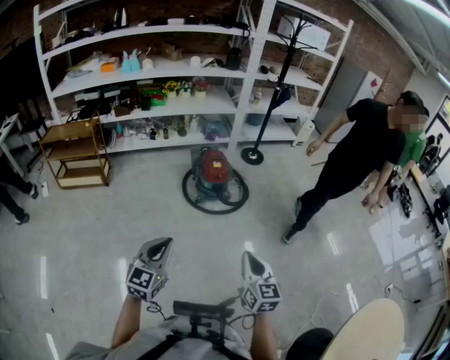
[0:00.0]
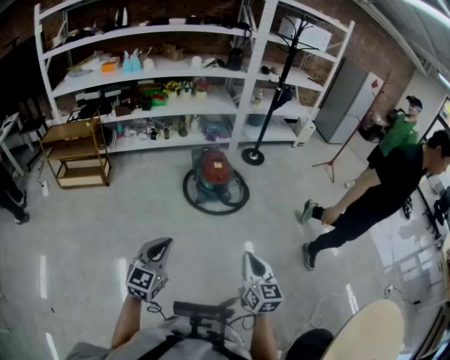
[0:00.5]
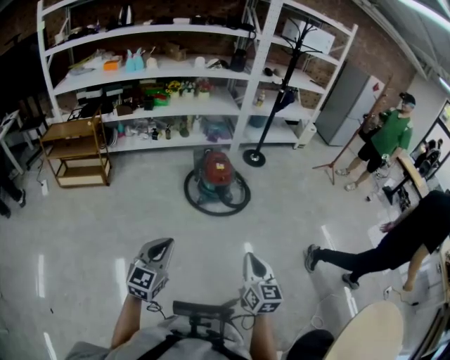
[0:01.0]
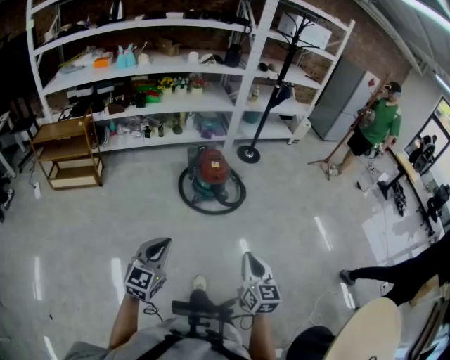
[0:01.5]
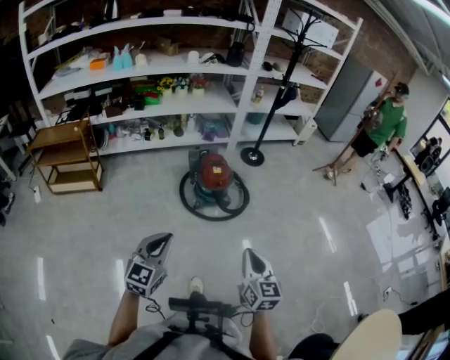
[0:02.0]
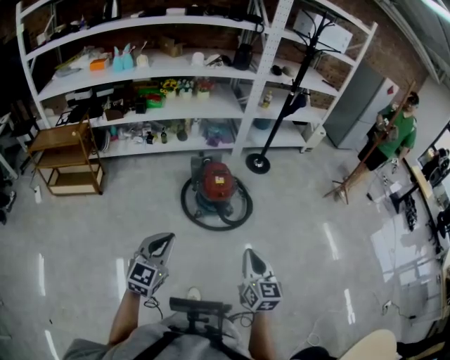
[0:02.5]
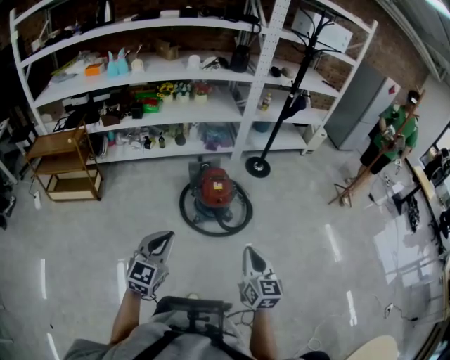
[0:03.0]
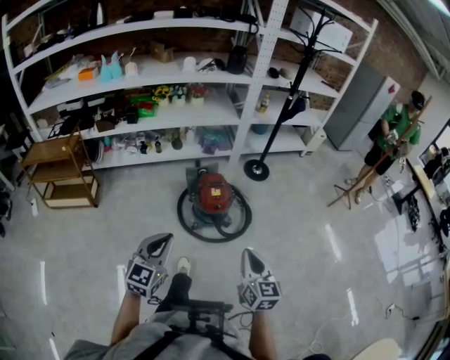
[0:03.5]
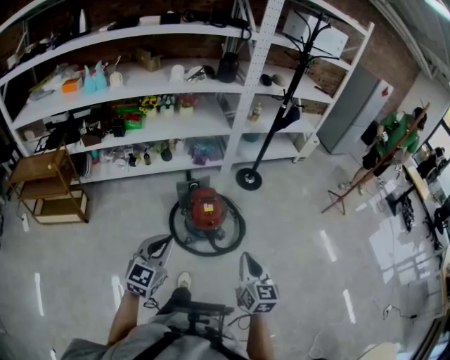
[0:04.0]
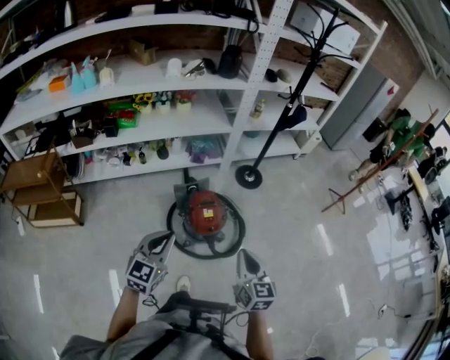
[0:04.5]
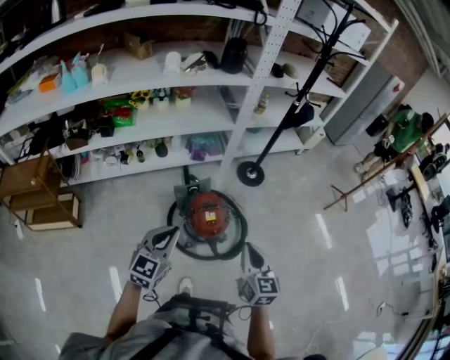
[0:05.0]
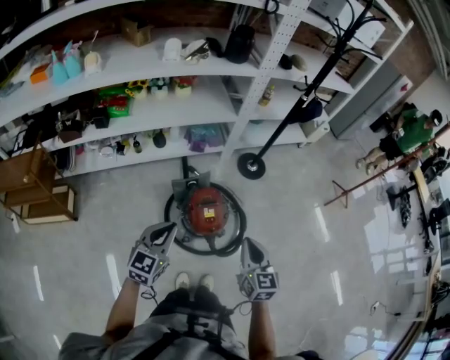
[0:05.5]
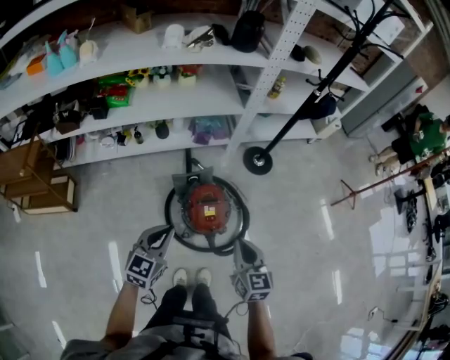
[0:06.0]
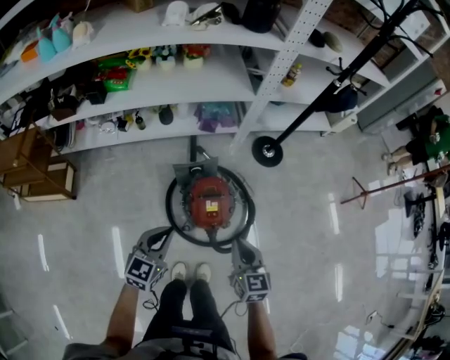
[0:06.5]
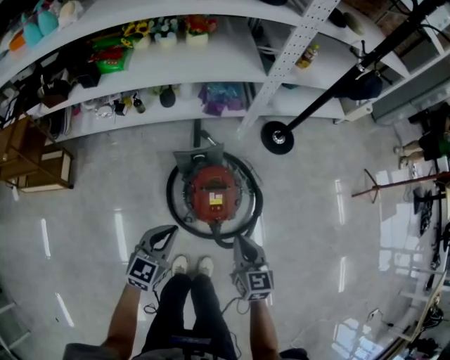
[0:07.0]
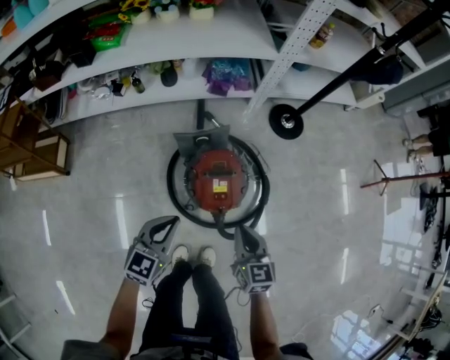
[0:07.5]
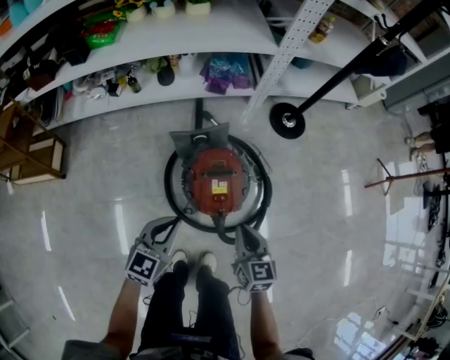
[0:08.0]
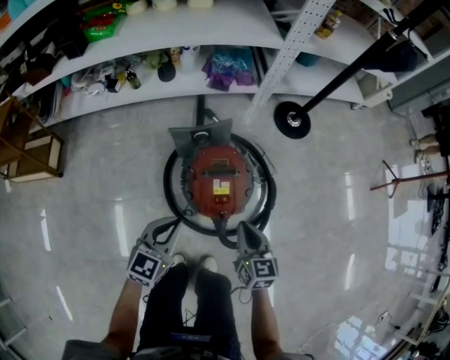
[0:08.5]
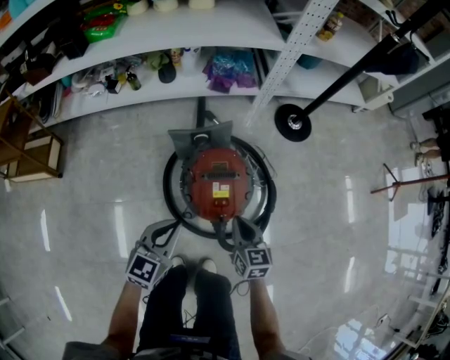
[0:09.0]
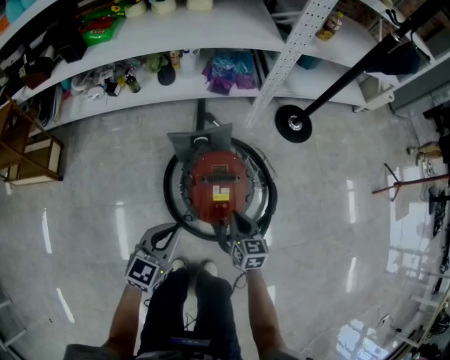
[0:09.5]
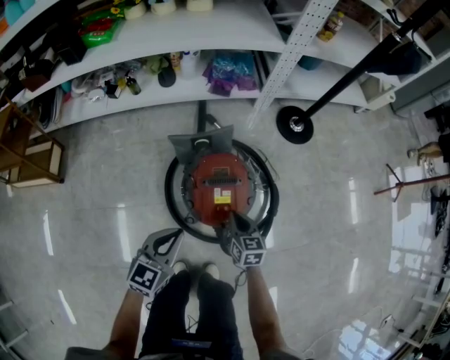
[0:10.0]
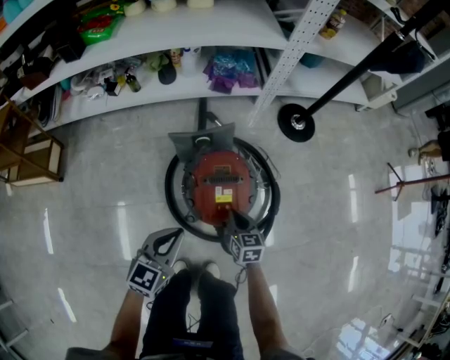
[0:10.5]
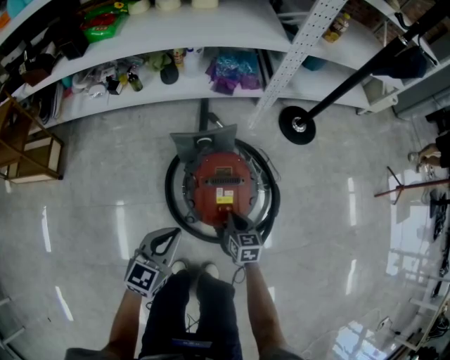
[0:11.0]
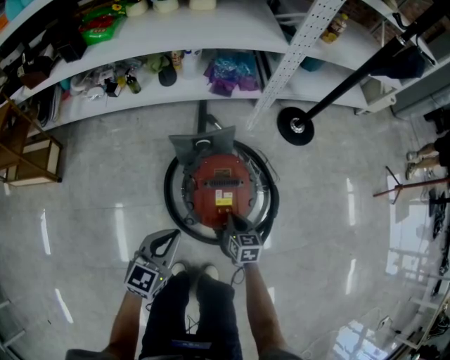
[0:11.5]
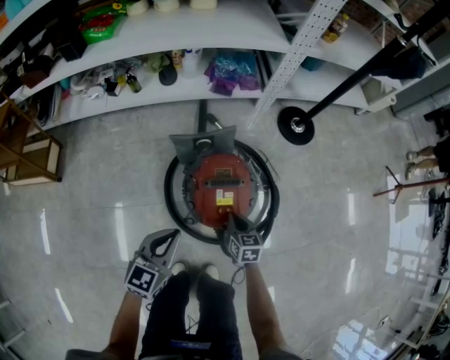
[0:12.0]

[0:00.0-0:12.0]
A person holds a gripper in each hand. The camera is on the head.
0.0 to 2.0 s: Both grippers travel together forward, some 15 cm.
2.0 to 4.0 s: The grippers both shift forward by about 30 cm.
4.0 to 6.0 s: Both grippers move forward, some 30 cm.
6.0 to 8.0 s: Both grippers move downward, approximately 30 cm.
8.0 to 10.0 s: The left gripper goes about 5 cm downward. Meanwhile the right gripper goes about 20 cm downward and forward.
10.0 to 12.0 s: The grippers make only small movements.

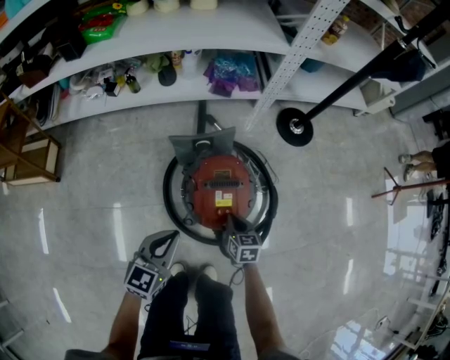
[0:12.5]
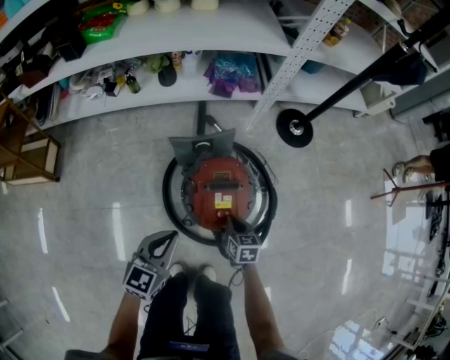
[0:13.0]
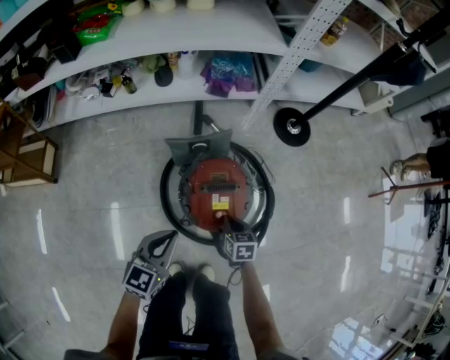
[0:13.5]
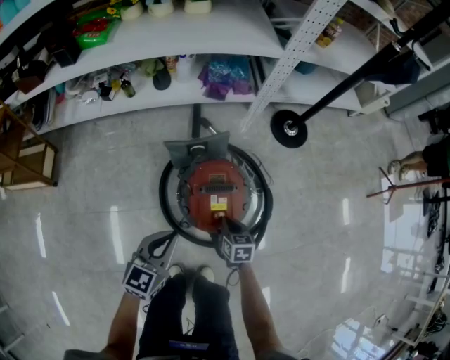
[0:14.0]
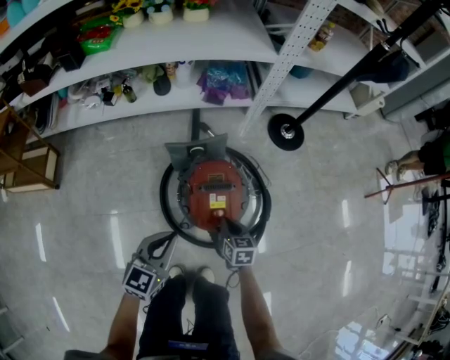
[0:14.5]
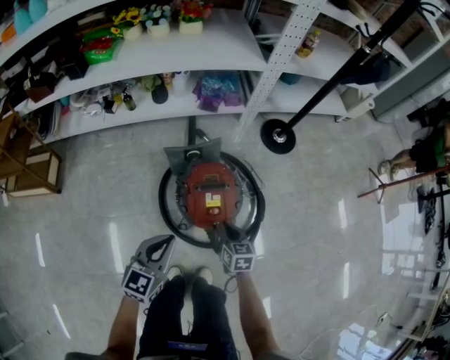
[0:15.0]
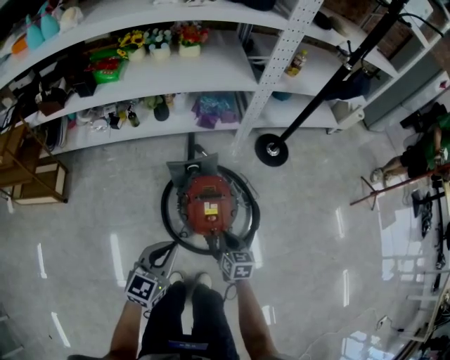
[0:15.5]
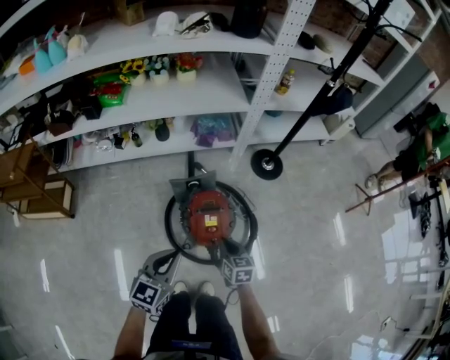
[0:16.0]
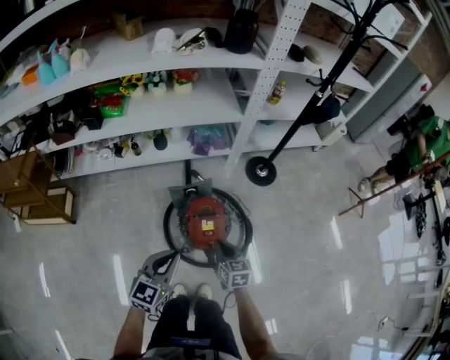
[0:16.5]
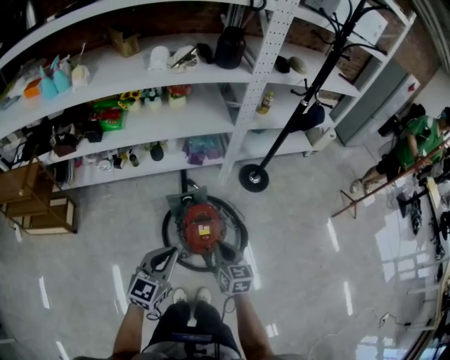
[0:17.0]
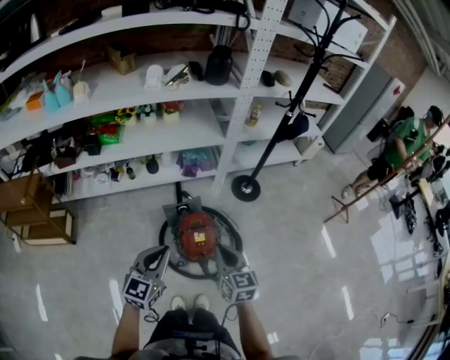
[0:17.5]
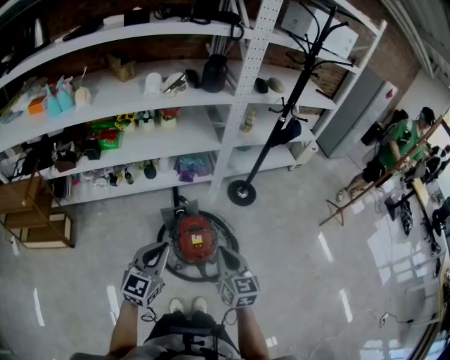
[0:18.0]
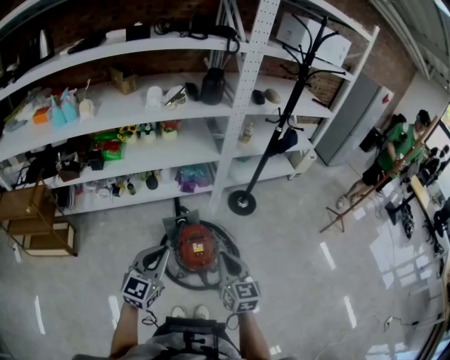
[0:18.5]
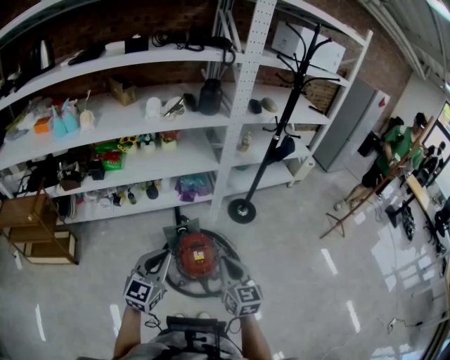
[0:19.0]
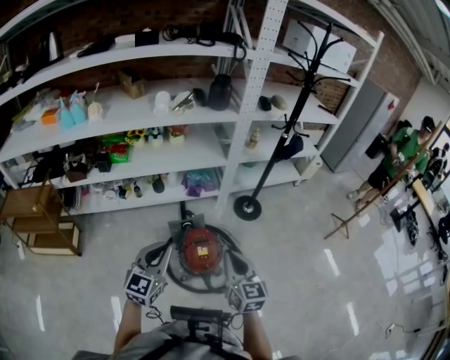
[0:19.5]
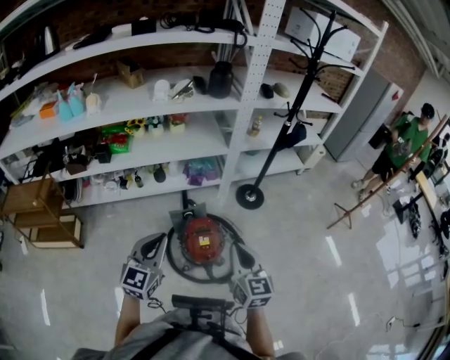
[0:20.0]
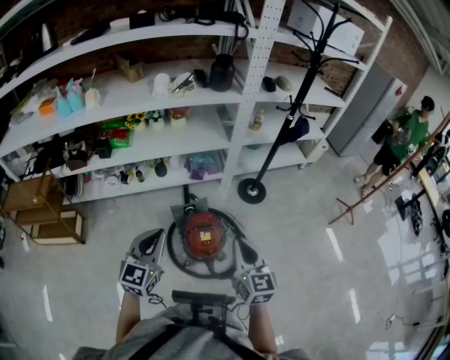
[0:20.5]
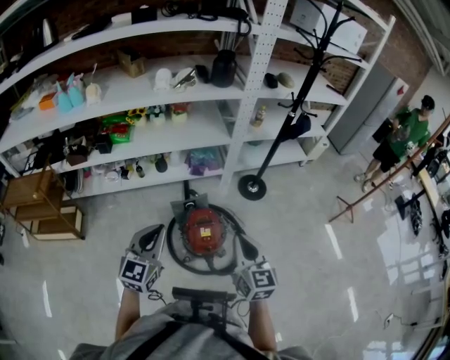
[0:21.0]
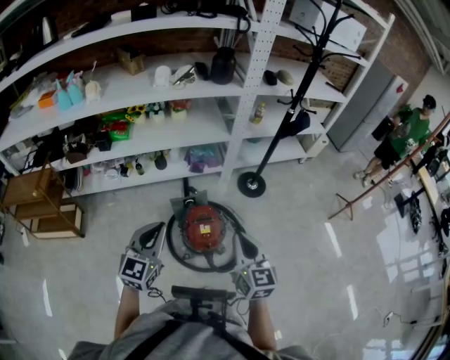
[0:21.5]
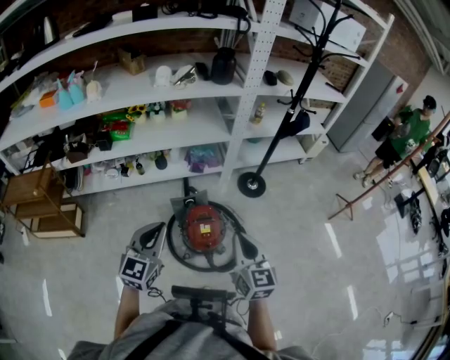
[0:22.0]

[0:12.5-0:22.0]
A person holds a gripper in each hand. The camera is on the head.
12.5 to 14.5 s: The grippers move only a little.
14.5 to 16.5 s: The two grippers go about 30 cm upward.
16.5 to 18.0 s: The left gripper goes roughly 15 cm upward, while the right gripper is displaced upward by approximately 25 cm.
18.0 to 20.0 s: The right gripper travels upward by some 5 cm.
20.0 to 22.0 s: The grippers move only a little.

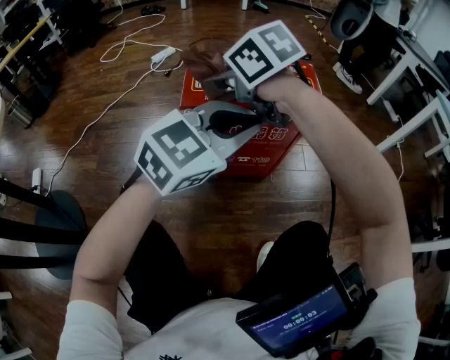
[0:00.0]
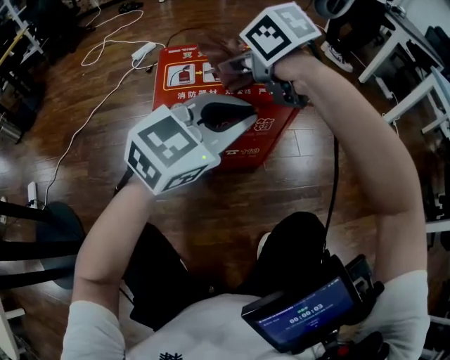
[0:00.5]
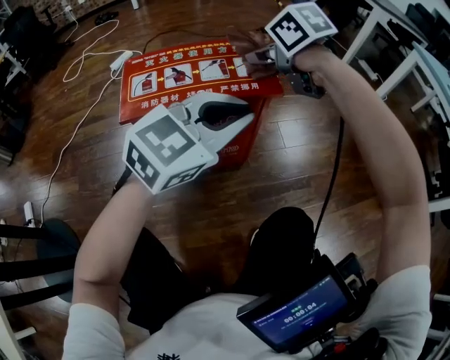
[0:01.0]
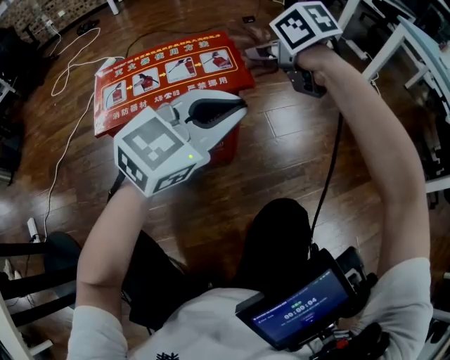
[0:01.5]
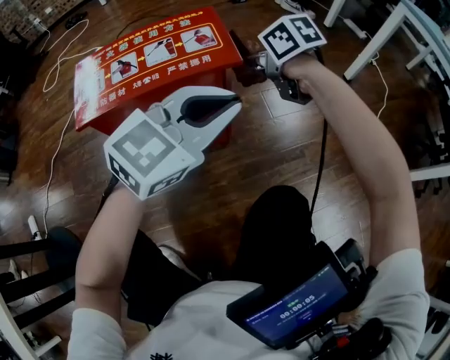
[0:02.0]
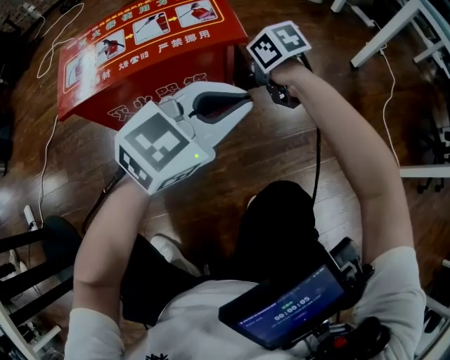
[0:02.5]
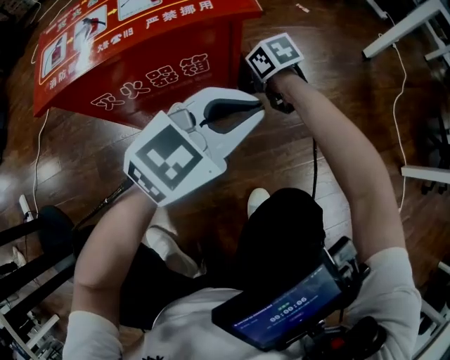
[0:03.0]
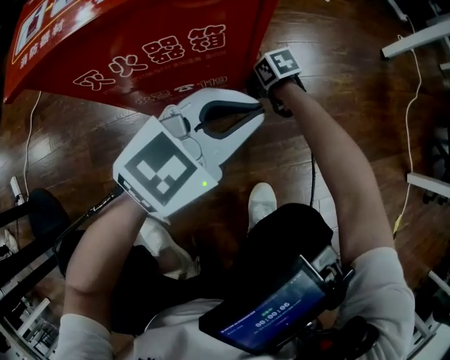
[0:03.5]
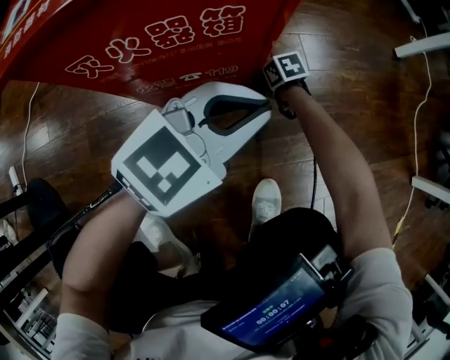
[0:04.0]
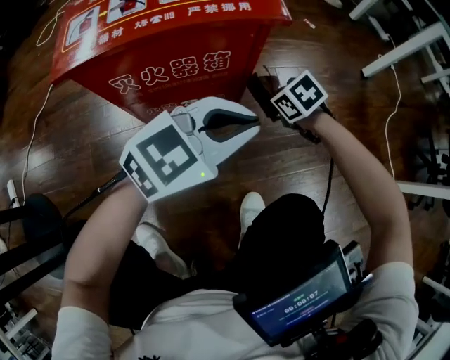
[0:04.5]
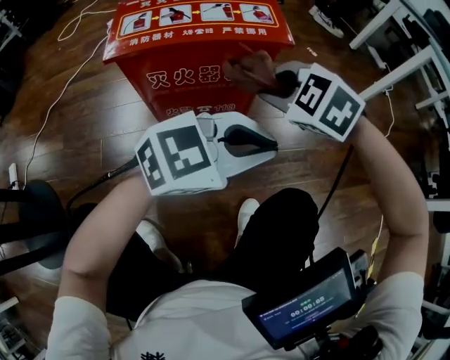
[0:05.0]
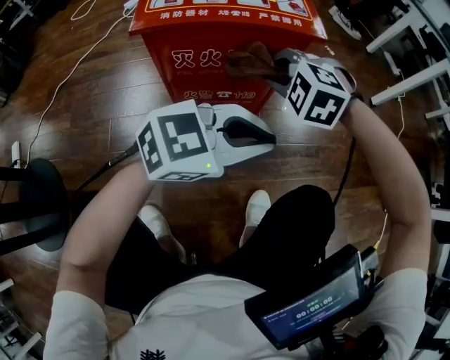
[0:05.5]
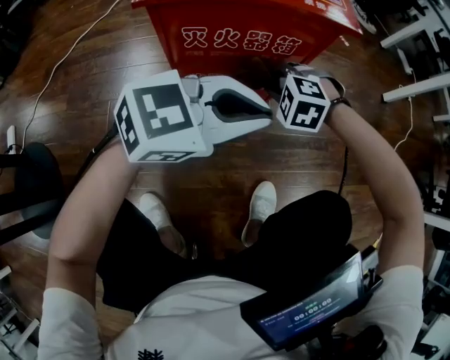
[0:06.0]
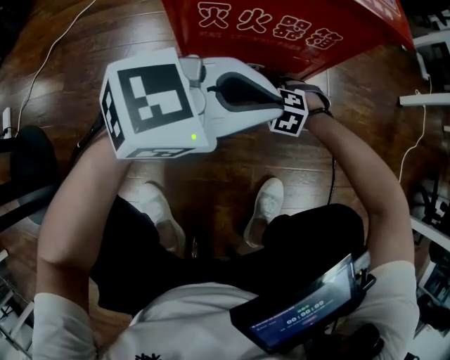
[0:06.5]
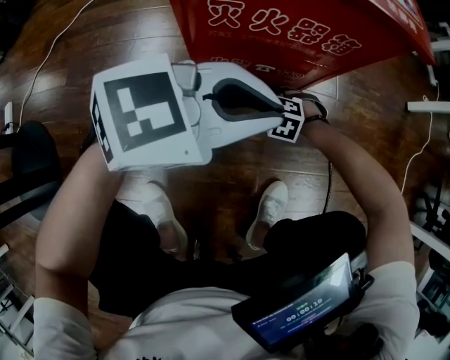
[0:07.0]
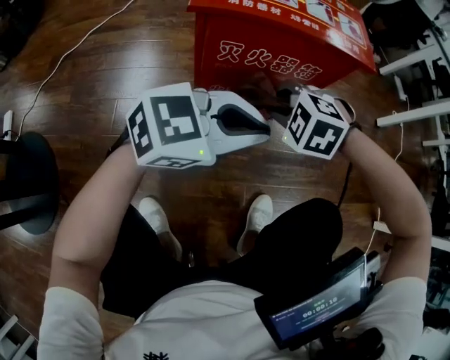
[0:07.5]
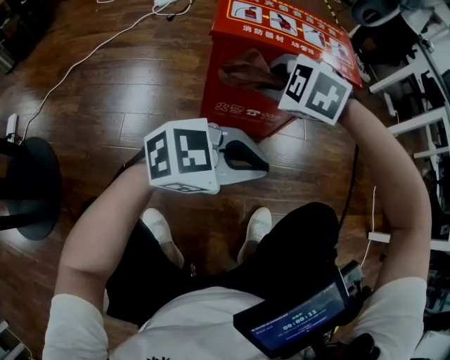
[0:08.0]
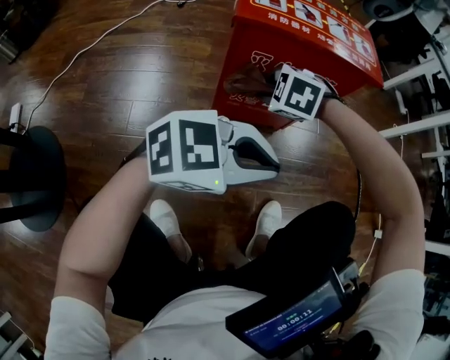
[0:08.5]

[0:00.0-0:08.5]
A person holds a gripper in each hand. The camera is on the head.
0.0 to 2.0 s: The right gripper is displaced to the right and downward by some 30 cm, and swivels roughly 30 degrees. The left gripper shifts some 15 cm to the right.
2.0 to 4.0 s: The right gripper shifts about 40 cm downward, and swivels roughly 20 degrees, while the left gripper heads downward, covering about 15 cm.
4.0 to 6.5 s: The right gripper reaches approximately 40 cm upward, then returns, and twists approximately 80 degrees counterclockwise, seen from behind, while the left gripper moves some 15 cm.
6.5 to 8.5 s: The left gripper shifts by about 10 cm; the right gripper goes roughly 15 cm upward.
